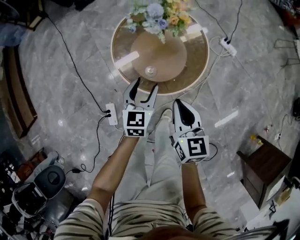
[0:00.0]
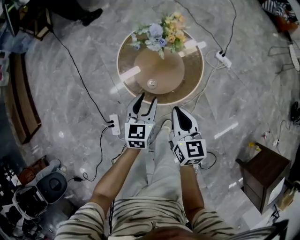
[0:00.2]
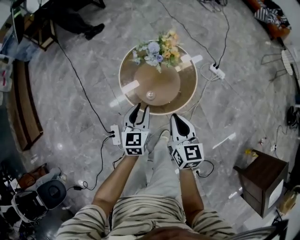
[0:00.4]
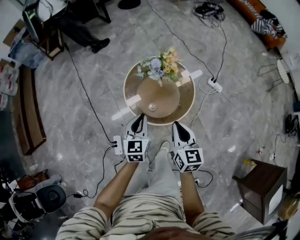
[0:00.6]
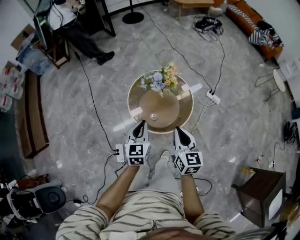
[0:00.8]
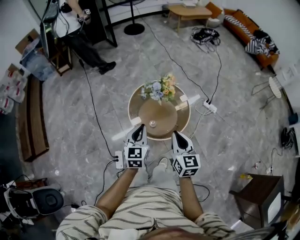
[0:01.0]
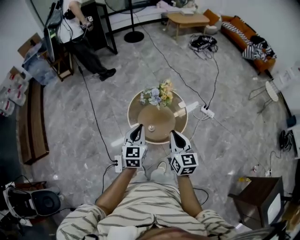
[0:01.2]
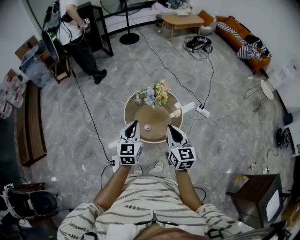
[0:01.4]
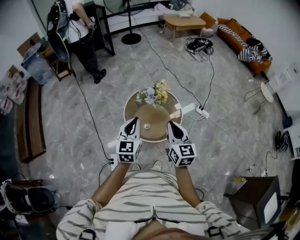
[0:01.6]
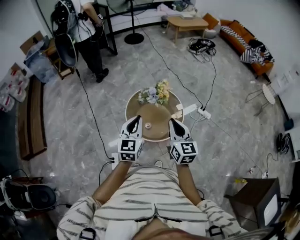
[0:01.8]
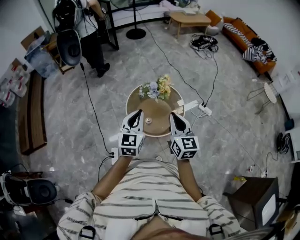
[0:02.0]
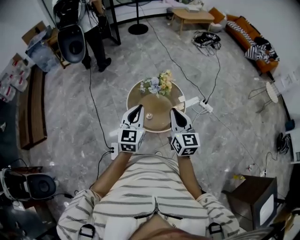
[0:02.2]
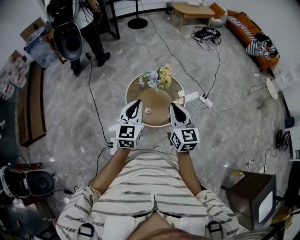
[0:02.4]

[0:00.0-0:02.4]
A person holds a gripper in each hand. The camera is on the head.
0.0 to 1.2 s: Both grippers travel together upward, some 30 cm. The left gripper closes its fingers.
1.2 to 2.4 s: Both grippers travel together upward, approximately 5 cm.

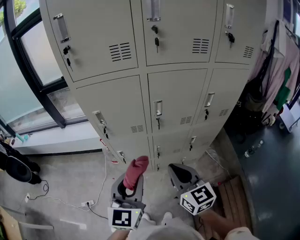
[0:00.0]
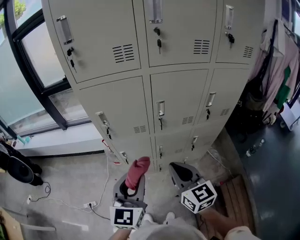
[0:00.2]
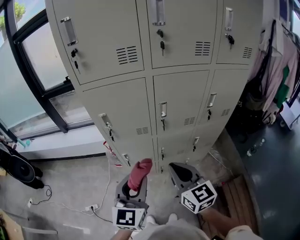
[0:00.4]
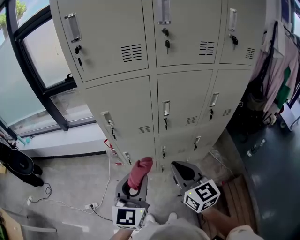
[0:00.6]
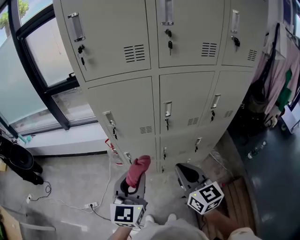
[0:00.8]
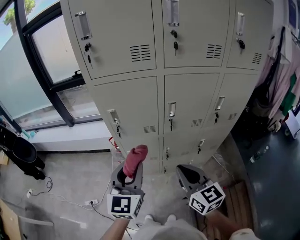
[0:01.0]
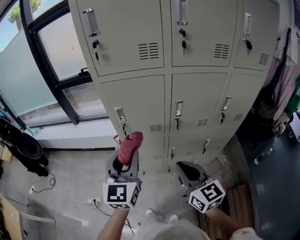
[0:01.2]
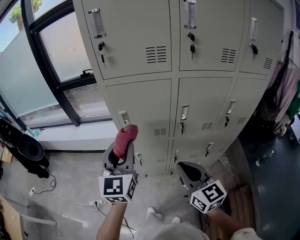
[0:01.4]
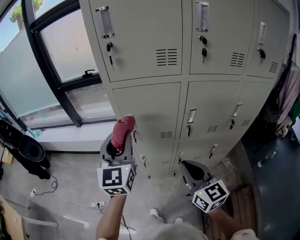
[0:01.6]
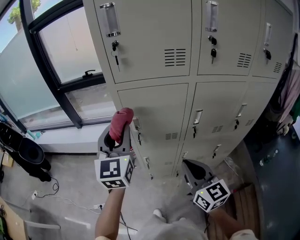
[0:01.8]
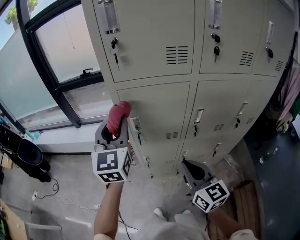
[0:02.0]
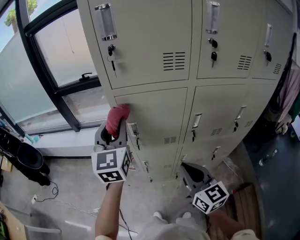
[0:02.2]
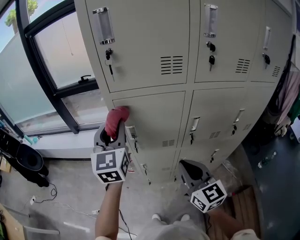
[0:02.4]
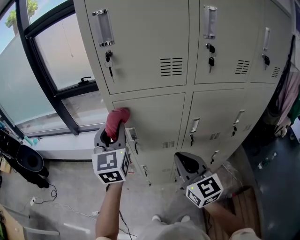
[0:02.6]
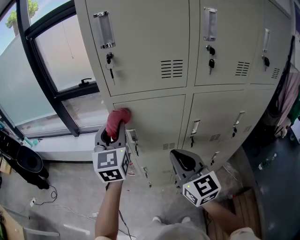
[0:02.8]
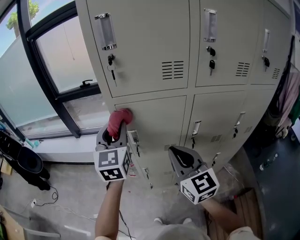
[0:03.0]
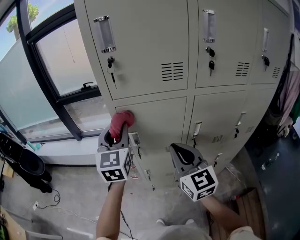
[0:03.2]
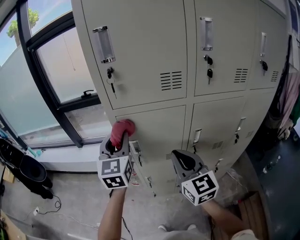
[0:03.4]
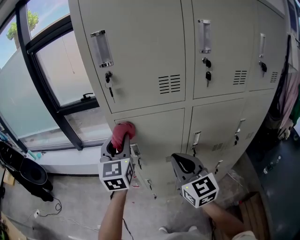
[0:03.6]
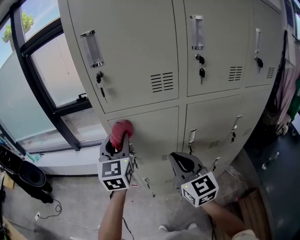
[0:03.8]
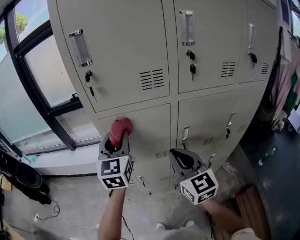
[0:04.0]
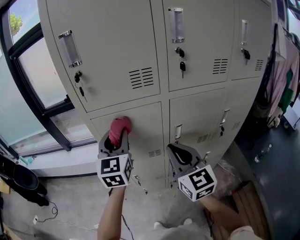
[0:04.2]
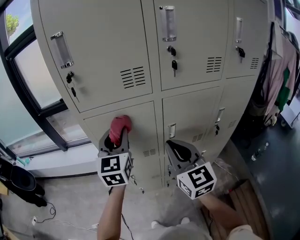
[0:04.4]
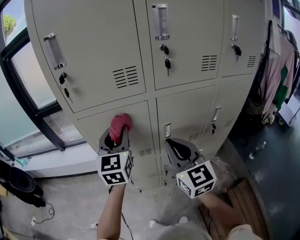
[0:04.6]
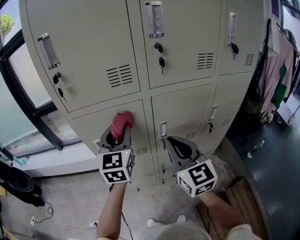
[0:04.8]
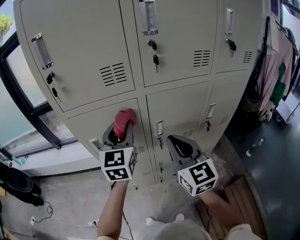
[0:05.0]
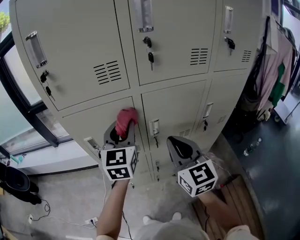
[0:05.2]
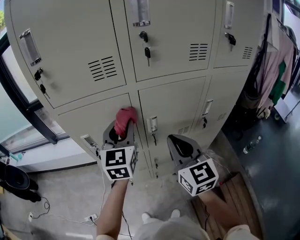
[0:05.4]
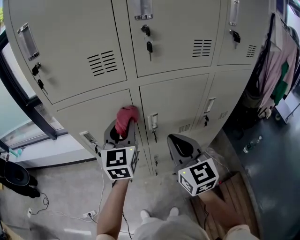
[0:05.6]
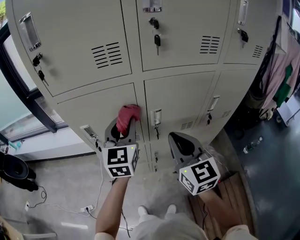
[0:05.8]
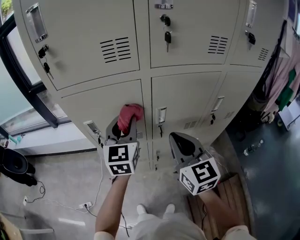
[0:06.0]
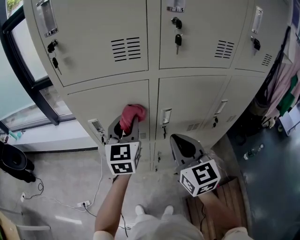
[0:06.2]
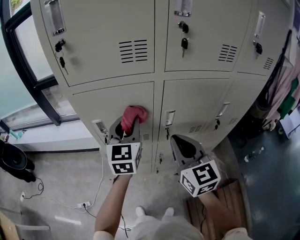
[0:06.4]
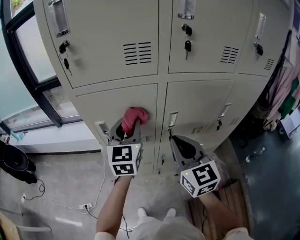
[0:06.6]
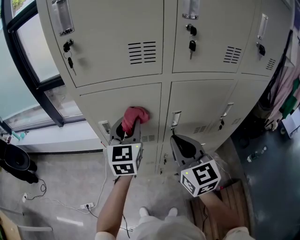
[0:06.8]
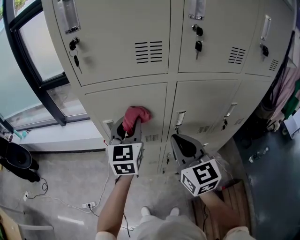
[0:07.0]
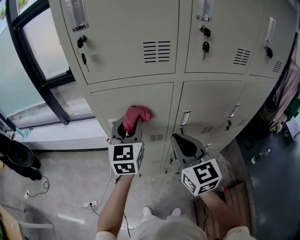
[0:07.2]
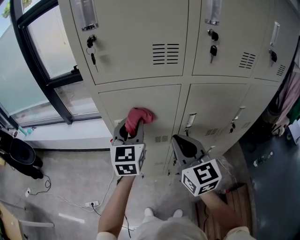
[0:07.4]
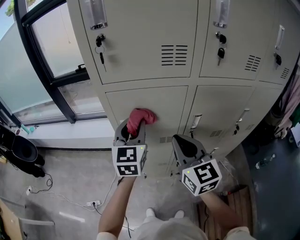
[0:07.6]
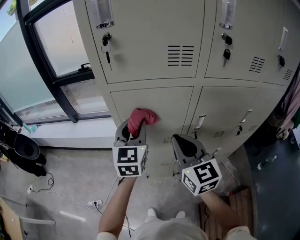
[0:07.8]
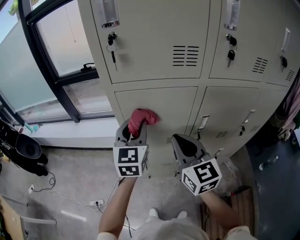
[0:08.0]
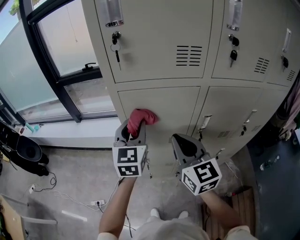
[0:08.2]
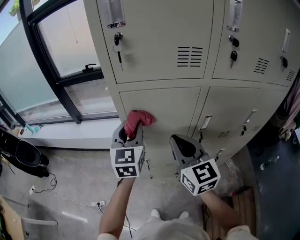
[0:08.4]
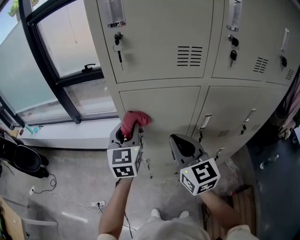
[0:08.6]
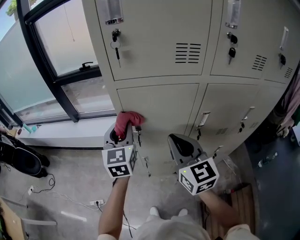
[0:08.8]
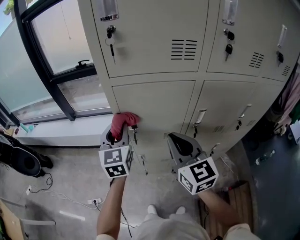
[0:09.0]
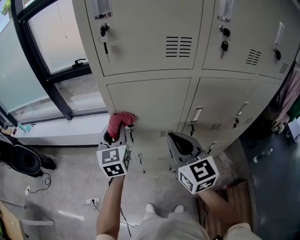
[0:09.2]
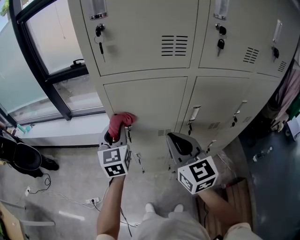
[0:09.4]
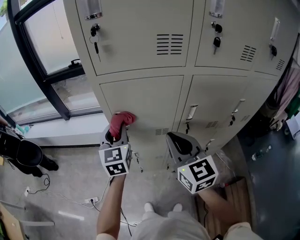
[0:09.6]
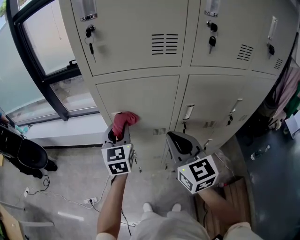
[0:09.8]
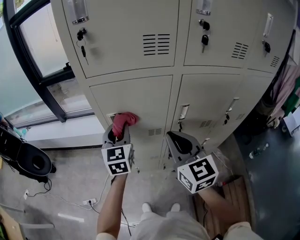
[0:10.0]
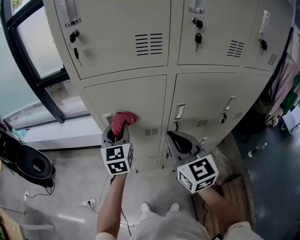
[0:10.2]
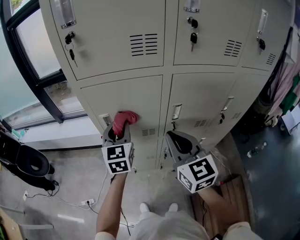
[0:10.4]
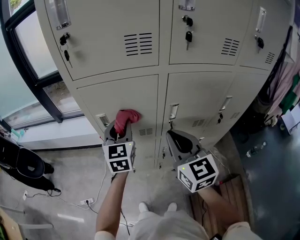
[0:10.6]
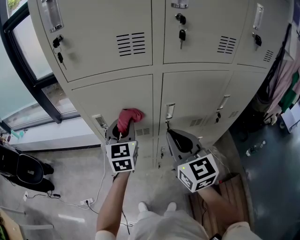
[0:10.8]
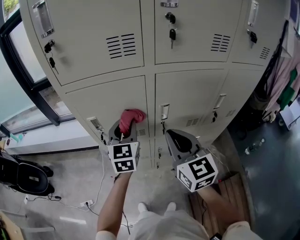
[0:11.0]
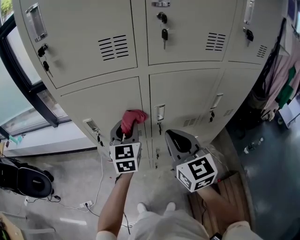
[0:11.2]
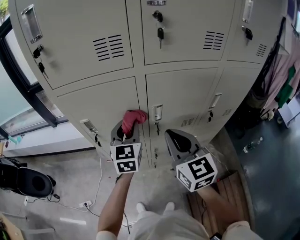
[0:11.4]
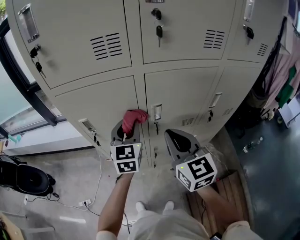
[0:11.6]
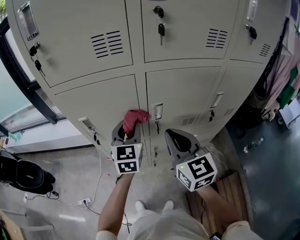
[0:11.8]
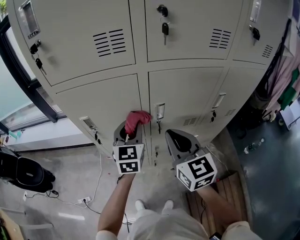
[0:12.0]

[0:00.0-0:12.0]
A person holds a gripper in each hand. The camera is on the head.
0.0 to 1.6 s: The right gripper moves to the left, about 10 cm. The left gripper goes approximately 25 cm forward, to the left and upward.
1.6 to 3.0 s: The left gripper shifts roughly 10 cm forward; the right gripper shifts about 10 cm forward and upward.
3.0 to 4.4 s: Both grippers move to the right, roughly 10 cm.
4.4 to 6.0 s: Both grippers travel together to the right and downward, some 10 cm.
6.0 to 7.6 s: The grippers both shift to the left by roughly 10 cm.
7.6 to 9.0 s: The left gripper shifts about 10 cm to the left.
9.0 to 10.4 s: Both grippers move to the right, approximately 10 cm.
10.4 to 12.0 s: The right gripper goes roughly 10 cm to the right. Meanwhile the left gripper moves to the right, about 15 cm.

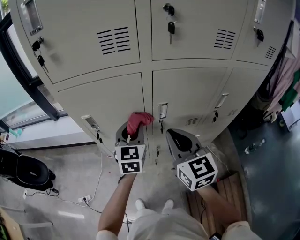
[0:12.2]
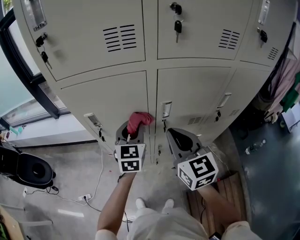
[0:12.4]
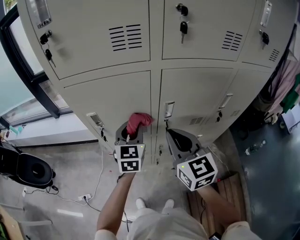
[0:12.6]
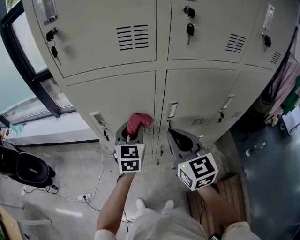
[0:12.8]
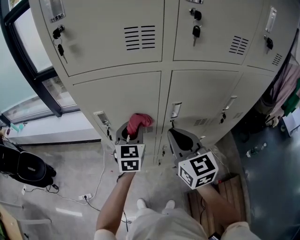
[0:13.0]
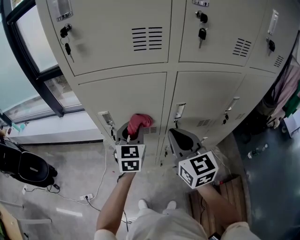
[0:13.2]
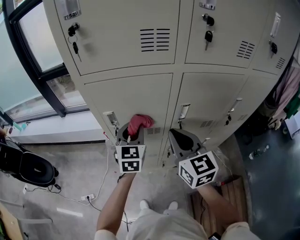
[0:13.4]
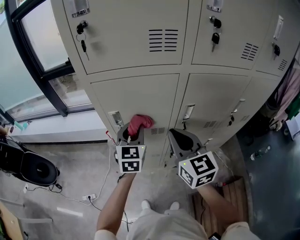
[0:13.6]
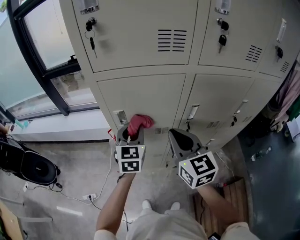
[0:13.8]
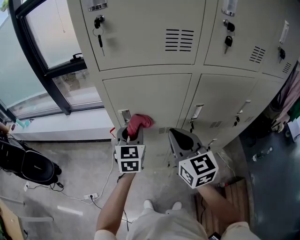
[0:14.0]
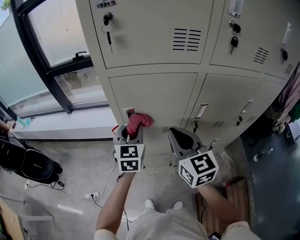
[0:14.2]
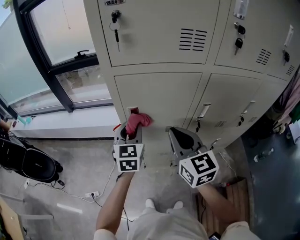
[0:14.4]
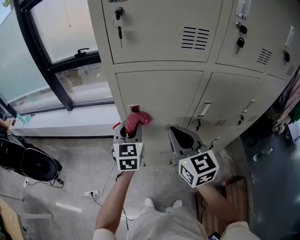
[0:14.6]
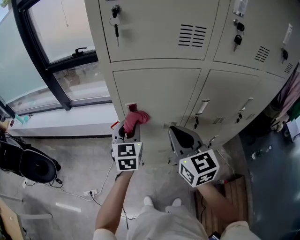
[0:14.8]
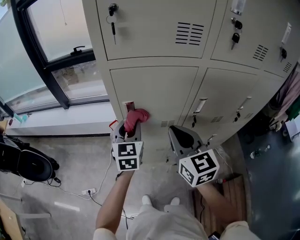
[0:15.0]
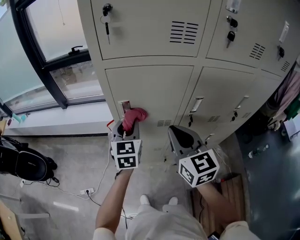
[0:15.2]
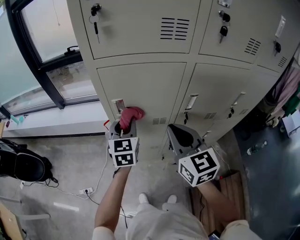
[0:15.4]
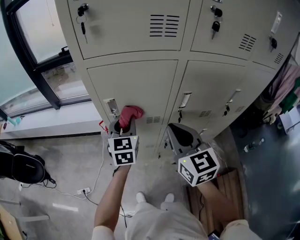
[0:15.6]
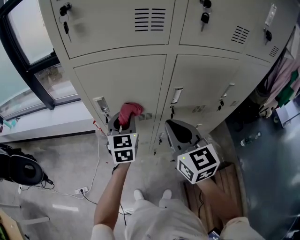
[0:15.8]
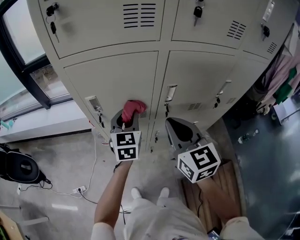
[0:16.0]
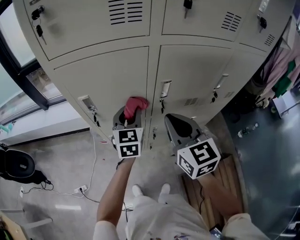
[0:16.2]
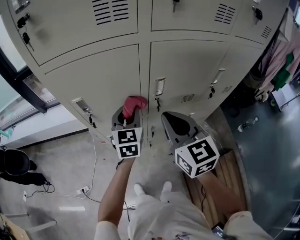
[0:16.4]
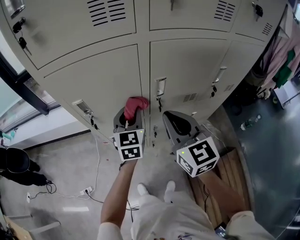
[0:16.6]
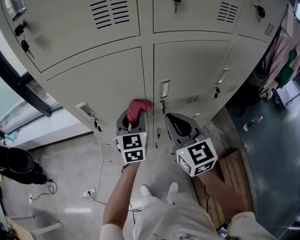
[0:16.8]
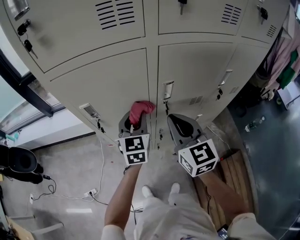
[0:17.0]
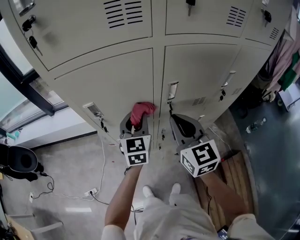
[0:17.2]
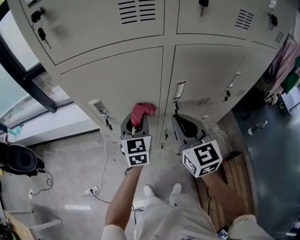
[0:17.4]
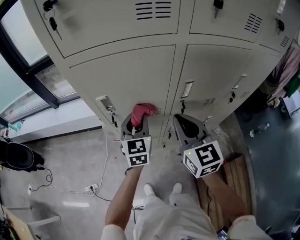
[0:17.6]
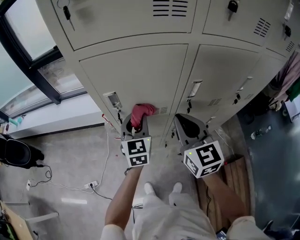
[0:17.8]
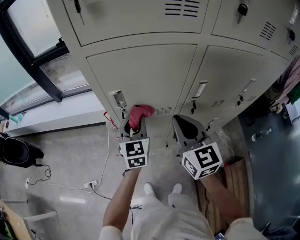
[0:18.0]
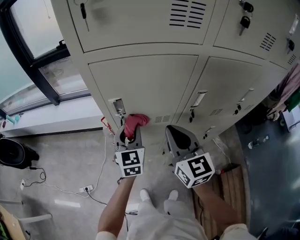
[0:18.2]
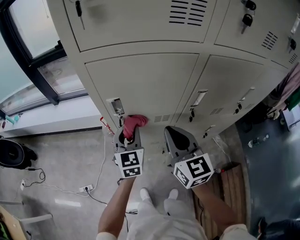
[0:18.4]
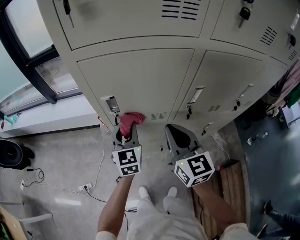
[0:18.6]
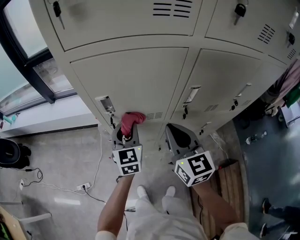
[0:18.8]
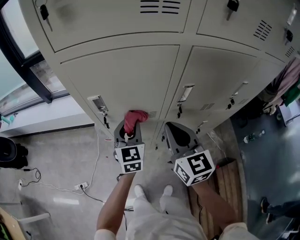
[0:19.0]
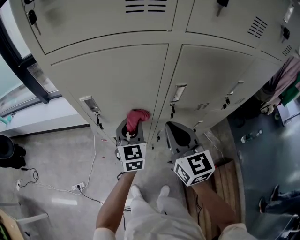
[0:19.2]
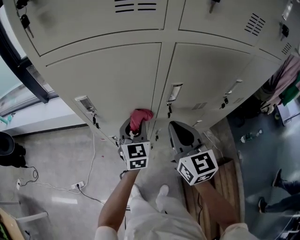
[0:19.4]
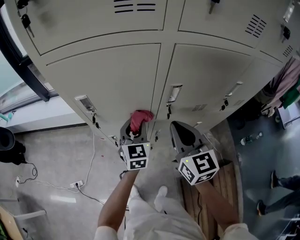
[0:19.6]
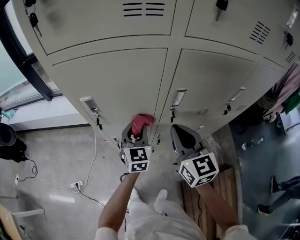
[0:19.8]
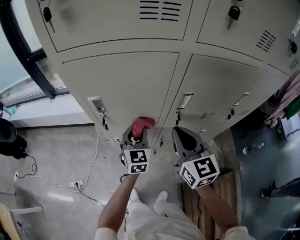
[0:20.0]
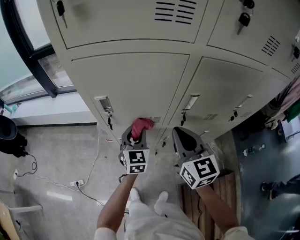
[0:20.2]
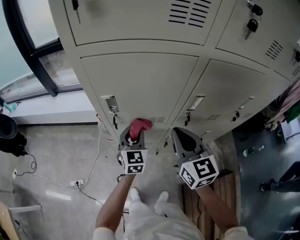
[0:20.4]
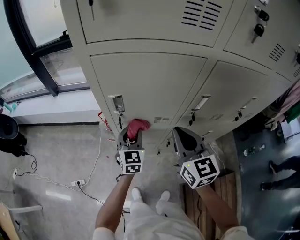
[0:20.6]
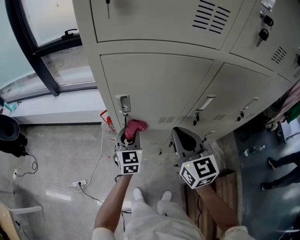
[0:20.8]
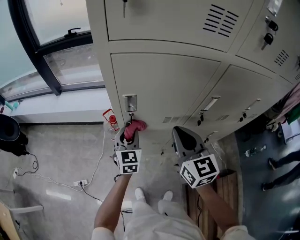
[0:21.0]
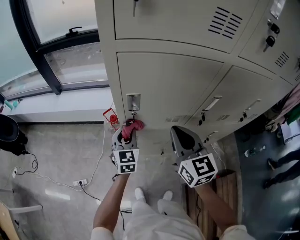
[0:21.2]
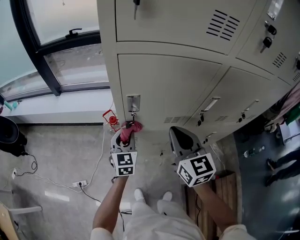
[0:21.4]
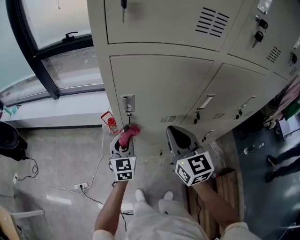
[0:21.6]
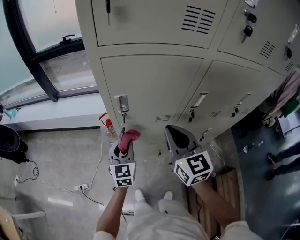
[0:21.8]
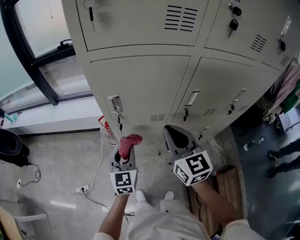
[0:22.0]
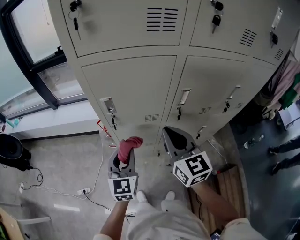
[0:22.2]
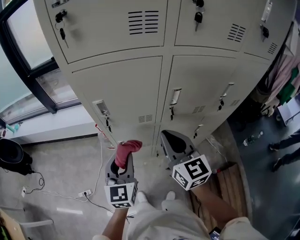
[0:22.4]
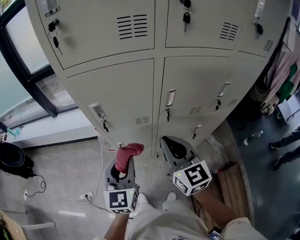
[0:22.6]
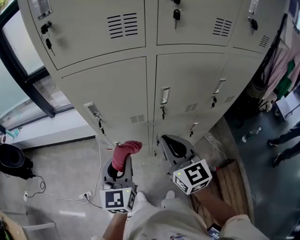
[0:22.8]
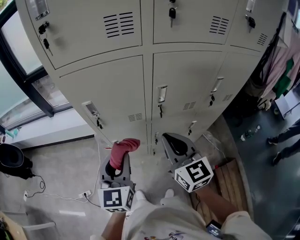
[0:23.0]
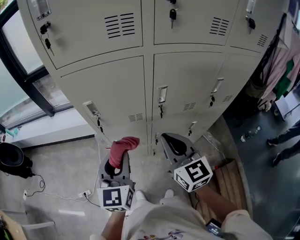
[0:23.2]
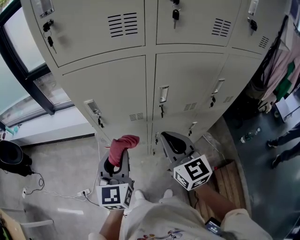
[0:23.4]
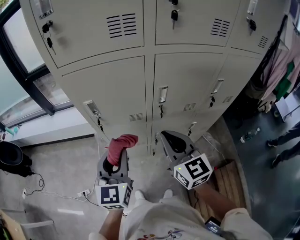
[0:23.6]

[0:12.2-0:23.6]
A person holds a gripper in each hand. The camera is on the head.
12.2 to 13.6 s: Both grippers move to the left, about 10 cm.
13.6 to 15.0 s: Both grippers travel together to the left, some 5 cm.
15.0 to 16.4 s: The two grippers go about 15 cm to the right.
16.4 to 17.8 s: The grippers both shift to the left by about 10 cm.
17.8 to 19.4 s: The grippers both shift to the right by roughly 10 cm.
19.4 to 20.8 s: The grippers both shift to the left by approximately 10 cm.
20.8 to 22.2 s: The right gripper moves about 5 cm. Meanwhile the left gripper heads backward and upward, covering approximately 15 cm.
22.2 to 23.6 s: The left gripper shifts roughly 10 cm upward. The right gripper moves to the right, about 5 cm.
